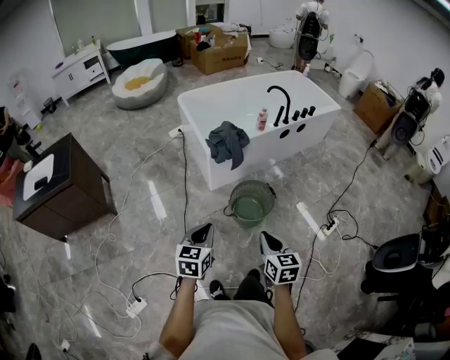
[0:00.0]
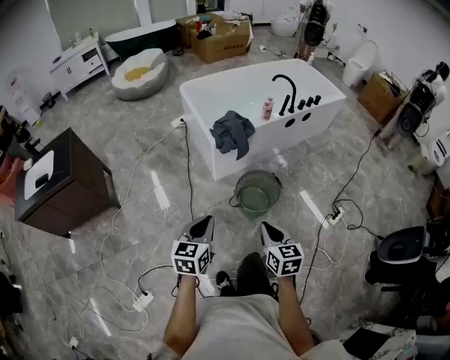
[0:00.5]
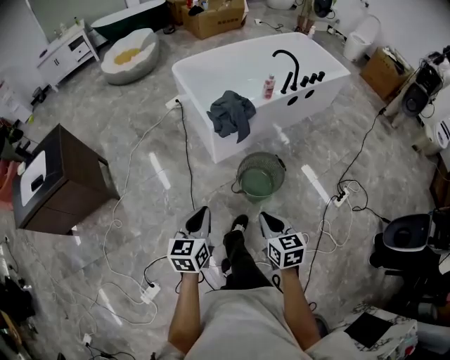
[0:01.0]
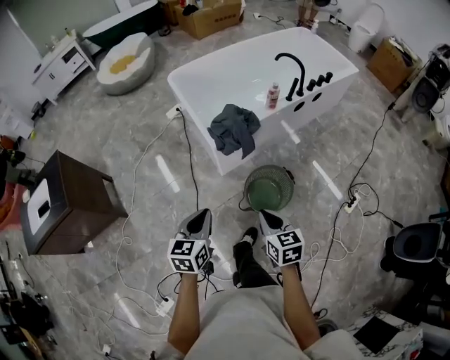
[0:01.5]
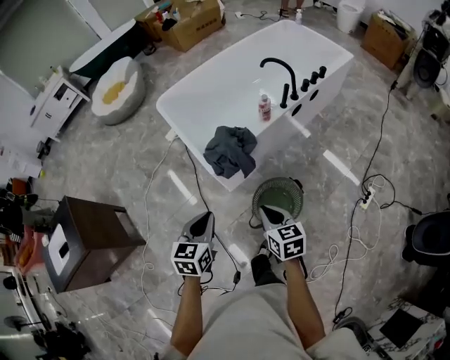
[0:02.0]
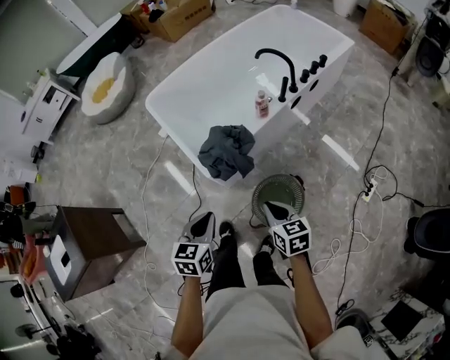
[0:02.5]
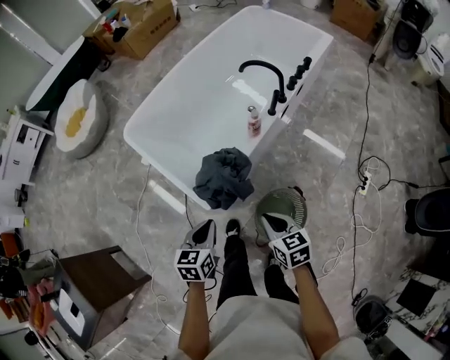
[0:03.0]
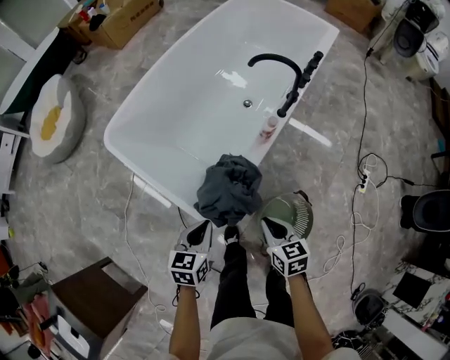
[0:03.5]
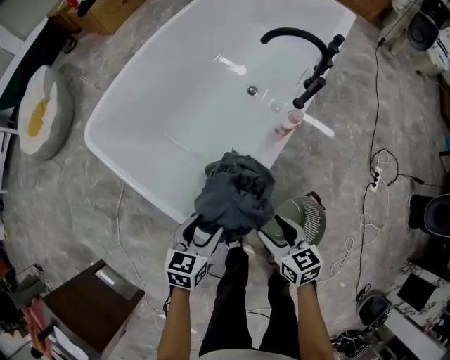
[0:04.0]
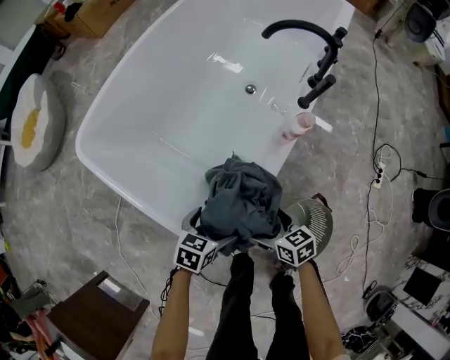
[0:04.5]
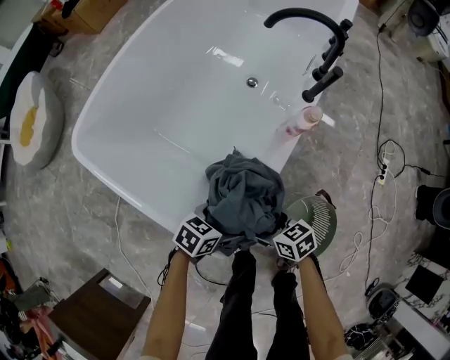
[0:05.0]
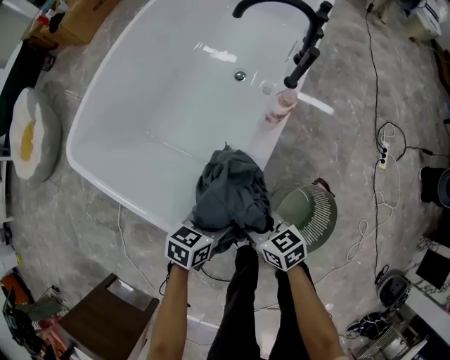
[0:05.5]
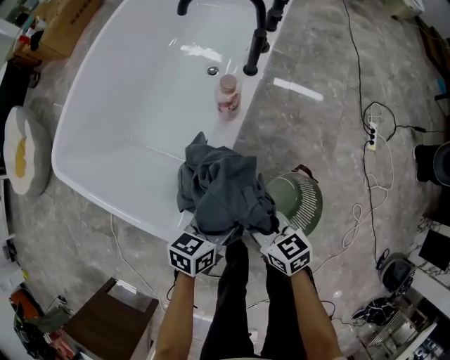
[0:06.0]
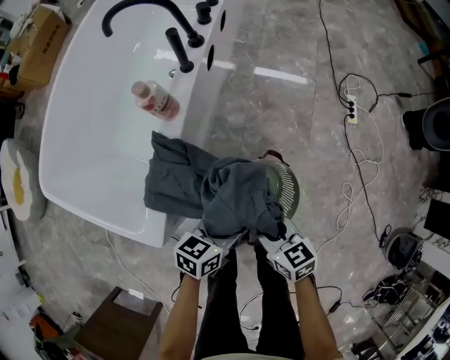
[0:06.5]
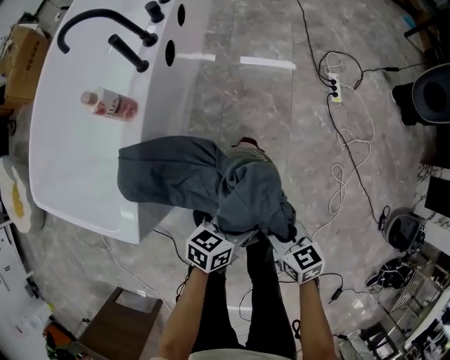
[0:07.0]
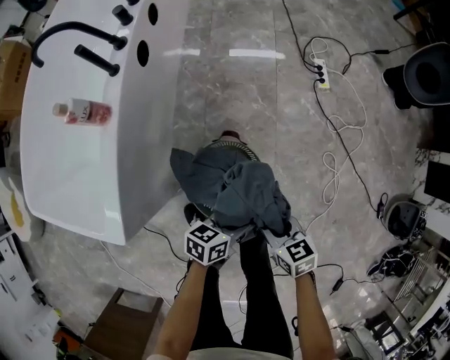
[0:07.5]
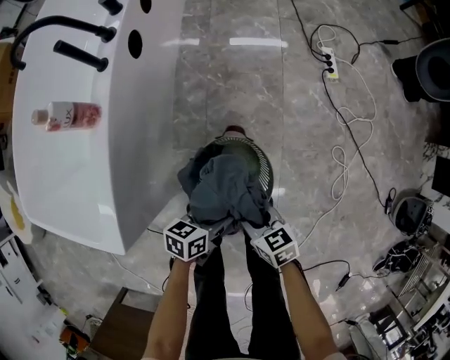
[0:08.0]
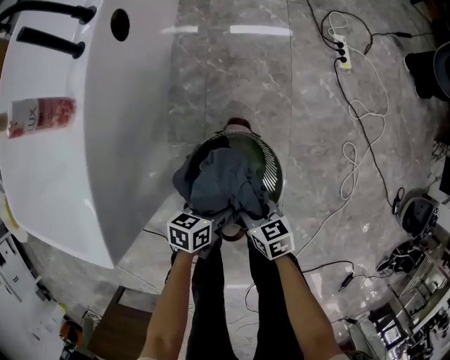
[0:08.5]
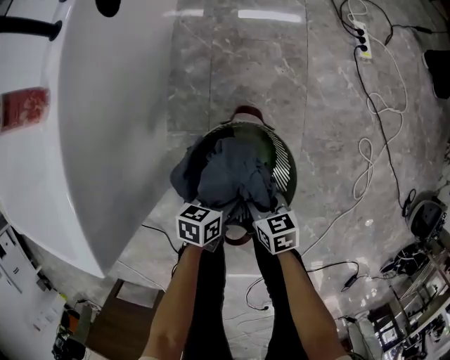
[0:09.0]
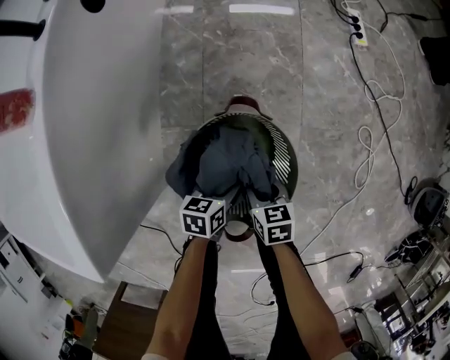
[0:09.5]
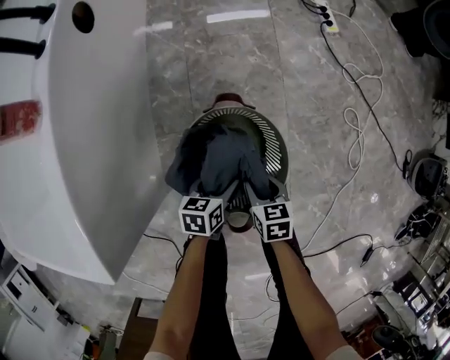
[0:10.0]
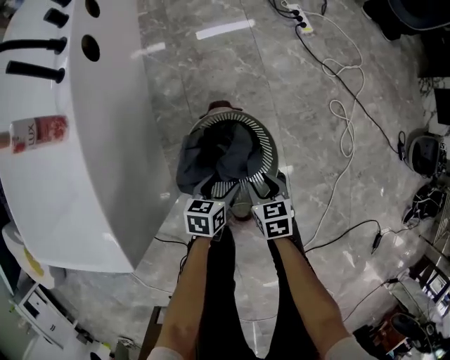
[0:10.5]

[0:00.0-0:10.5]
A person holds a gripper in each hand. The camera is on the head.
0:00.0 to 0:02.0: Both grippers travel together forward, some 35 cm.
0:02.0 to 0:04.0: Both grippers travel together forward and downward, some 40 cm. The left gripper swivels some 30 degrees. The right gripper opens.
0:04.0 to 0:06.5: The right gripper shifts by some 20 cm, and opens and closes again, while the left gripper changes place by about 30 cm, changes its angle by roughly 30 degrees, and opens and closes again.
0:06.5 to 0:08.5: The right gripper shifts some 25 cm downward and to the right. The left gripper moves downward, about 25 cm.
0:08.5 to 0:10.5: The left gripper reaches some 10 cm downward, then returns; the right gripper travels downward and back again, some 10 cm each way, and rotates about 30 degrees.

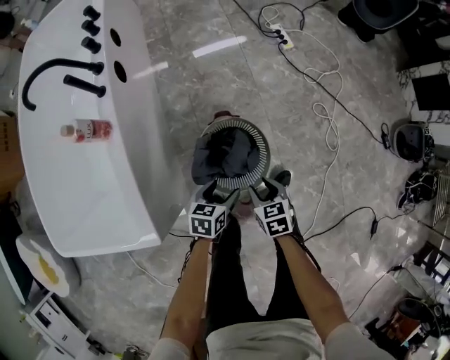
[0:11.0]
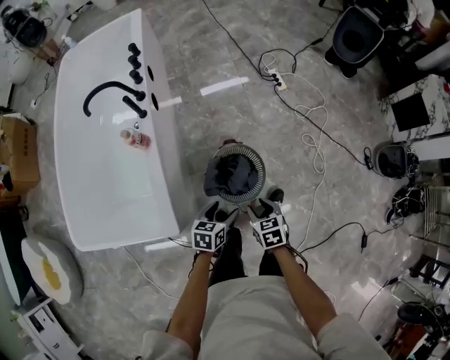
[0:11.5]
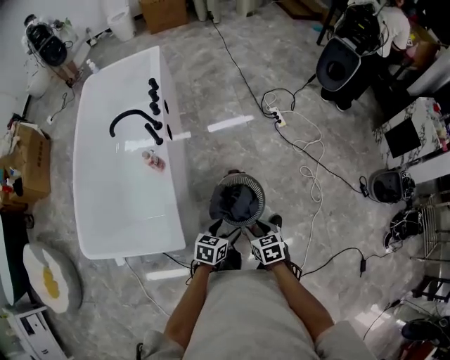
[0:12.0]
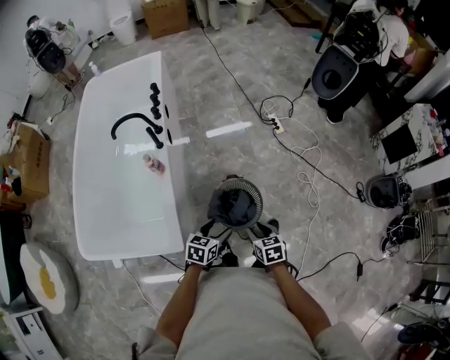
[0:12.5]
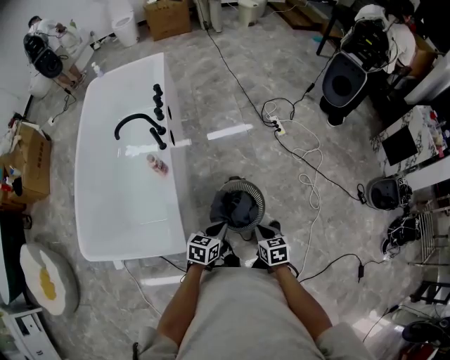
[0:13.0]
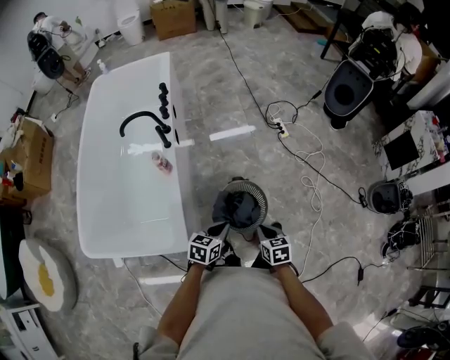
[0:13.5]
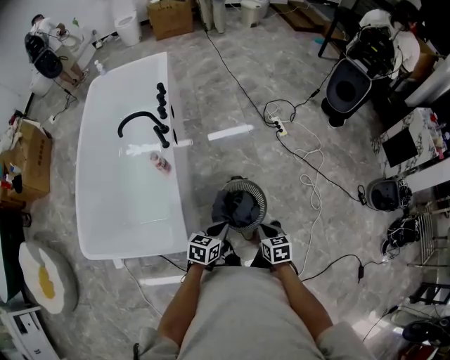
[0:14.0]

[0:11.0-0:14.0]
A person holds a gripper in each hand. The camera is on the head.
0:11.0 to 0:12.5: Both grippers move upward, some 25 cm.
0:12.5 to 0:14.0: The left gripper closes.

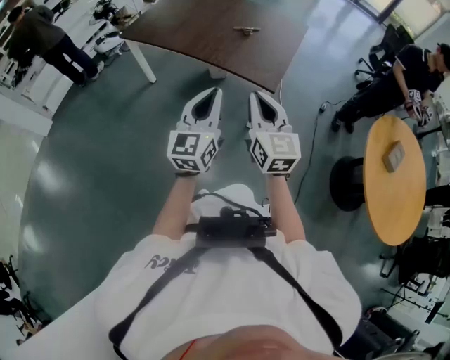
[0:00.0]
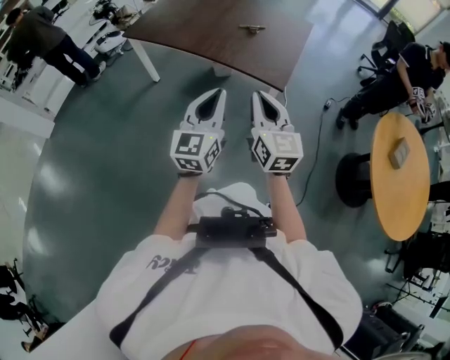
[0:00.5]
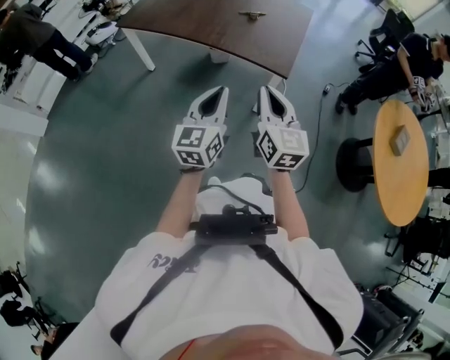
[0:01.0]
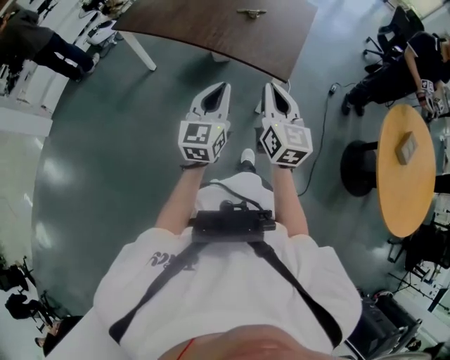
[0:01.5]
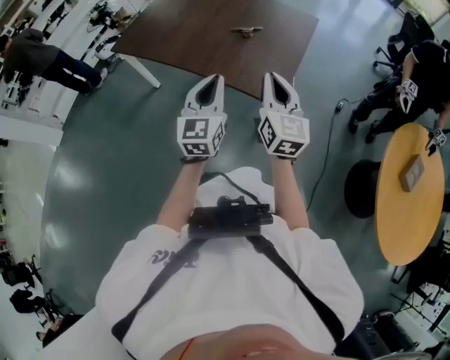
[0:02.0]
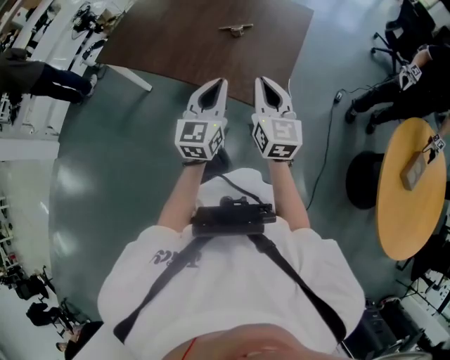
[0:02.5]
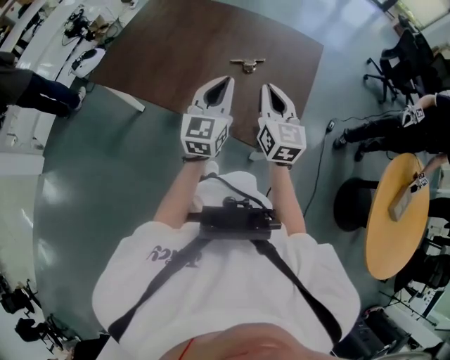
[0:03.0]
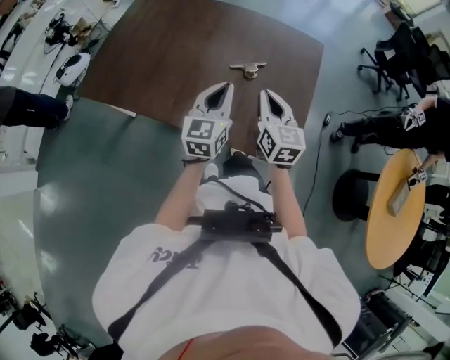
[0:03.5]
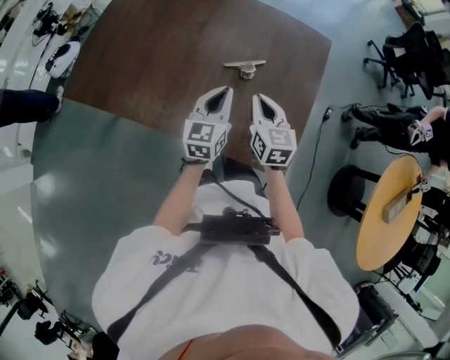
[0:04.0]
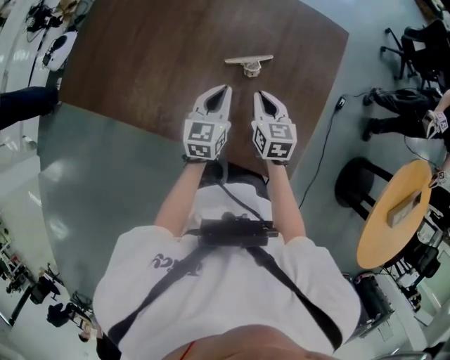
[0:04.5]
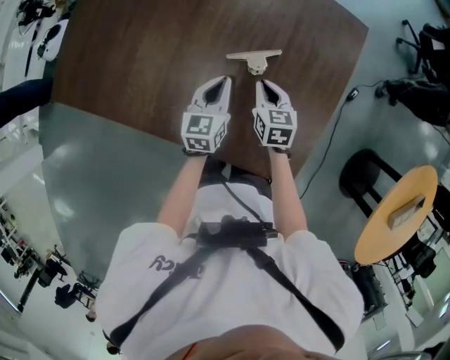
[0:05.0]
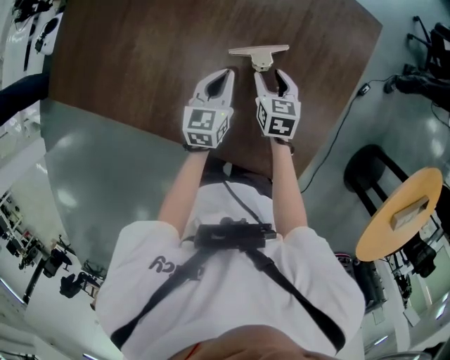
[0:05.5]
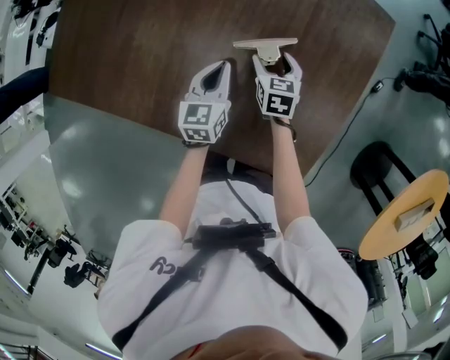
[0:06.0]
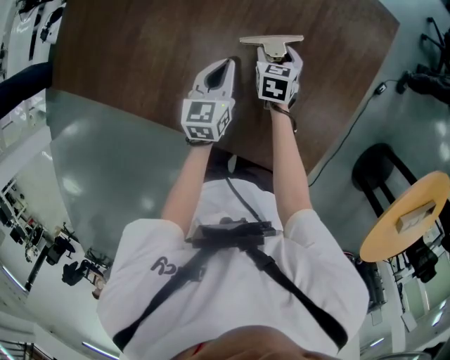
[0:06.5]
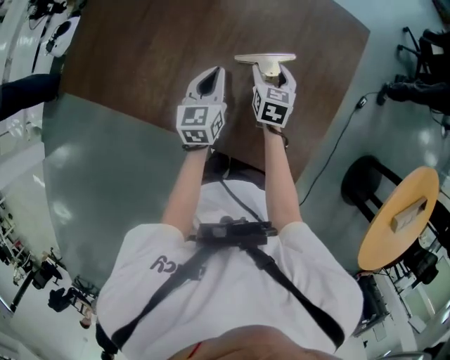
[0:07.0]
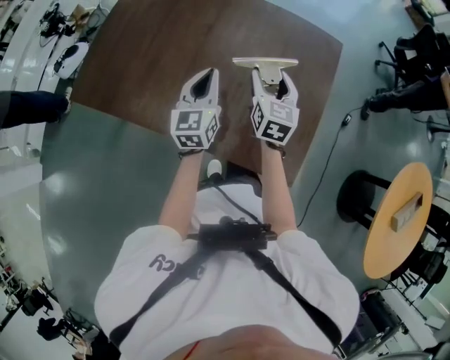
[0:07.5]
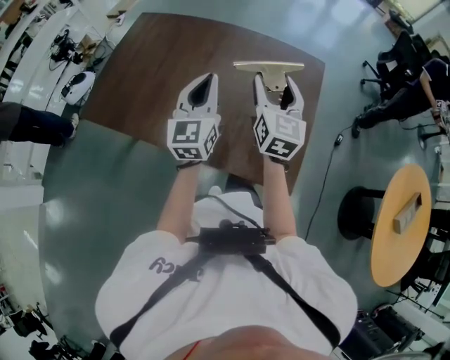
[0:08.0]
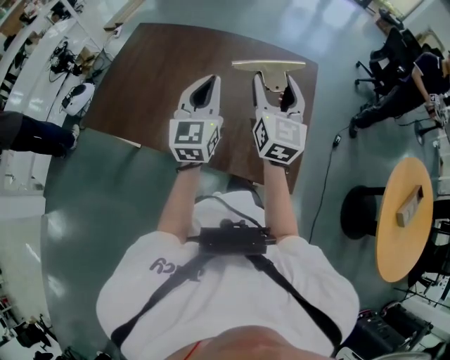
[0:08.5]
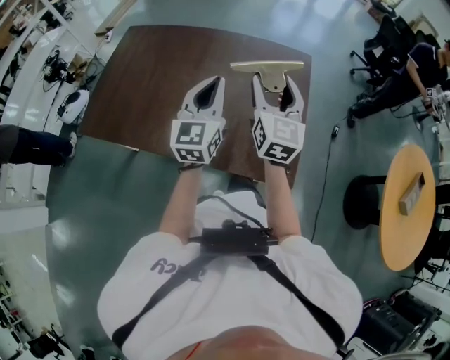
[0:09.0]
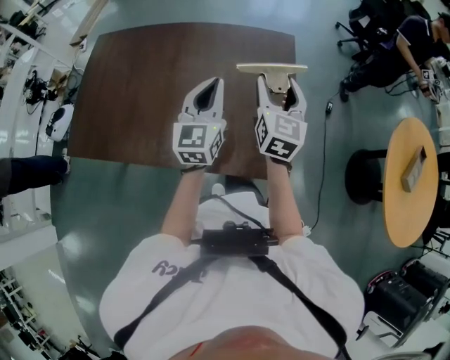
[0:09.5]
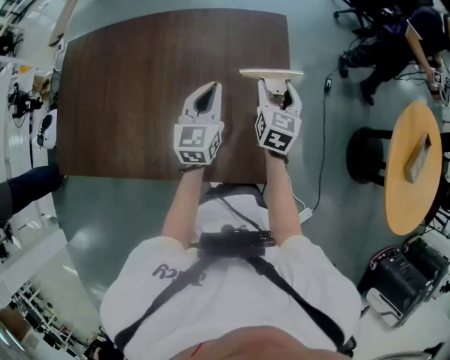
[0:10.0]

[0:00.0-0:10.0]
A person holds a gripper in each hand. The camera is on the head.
0:00.0 to 0:02.0: The grippers both shift forward by some 20 cm.
0:02.0 to 0:04.0: The left gripper travels forward by about 40 cm, and swivels some 20 degrees, while the right gripper travels forward and downward by roughly 40 cm, and rotates some 30 degrees.
0:04.0 to 0:06.0: The two grippers go some 25 cm downward and forward. The right gripper rotates about 20 degrees, and opens up.
0:06.0 to 0:08.0: The two grippers go roughly 40 cm upward. The right gripper points its fingers some 40 degrees further upward; the left gripper angles its fingers upward, by approximately 30 degrees.
0:08.0 to 0:10.0: The right gripper heads downward, to the right and forward, covering some 25 cm, and rotates some 30 degrees; the left gripper shifts some 25 cm to the right, downward and forward, and changes its angle by about 30 degrees.

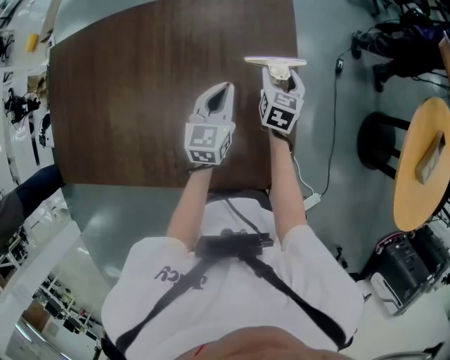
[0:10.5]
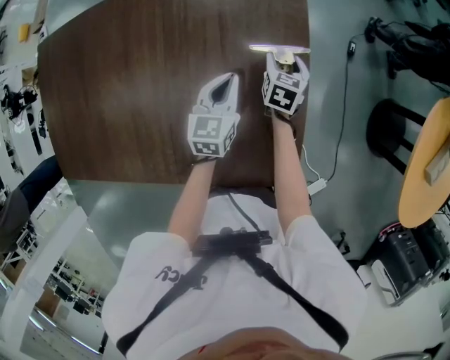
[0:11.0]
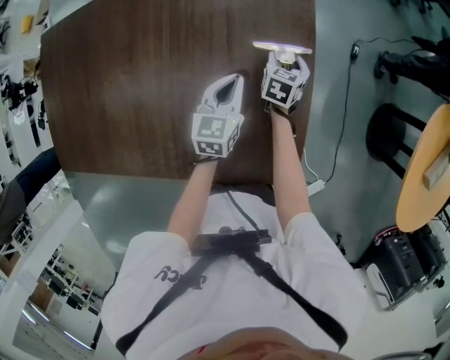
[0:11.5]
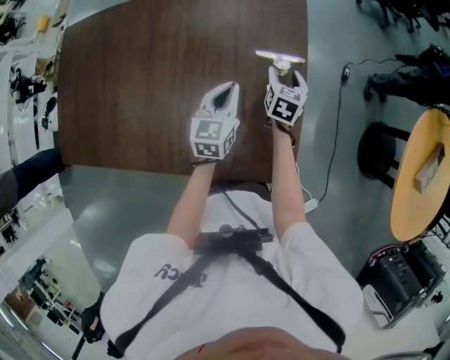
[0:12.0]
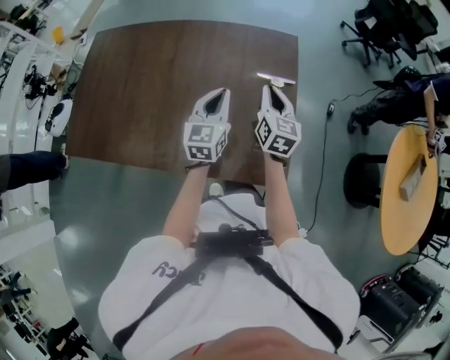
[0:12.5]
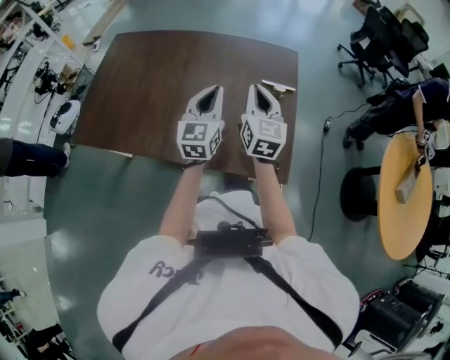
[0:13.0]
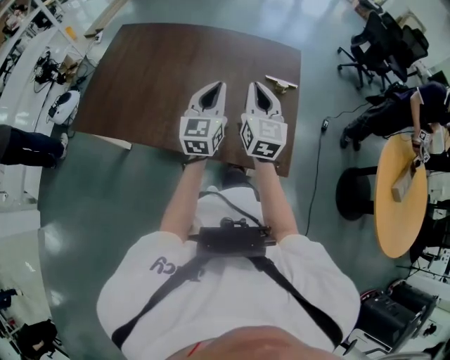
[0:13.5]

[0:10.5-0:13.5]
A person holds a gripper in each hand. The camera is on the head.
0:10.5 to 0:12.0: The right gripper travels downward and back again, some 10 cm each way.
0:12.0 to 0:13.5: Both grippers travel together upward, backward and to the left, about 35 cm. The left gripper rotates roughly 30 degrees. The right gripper tips its fingers upward by roughly 40 degrees, and closes.
